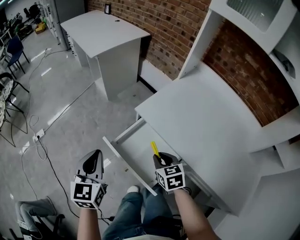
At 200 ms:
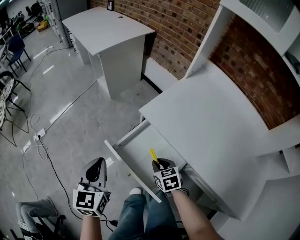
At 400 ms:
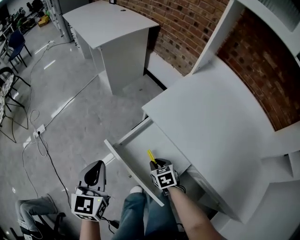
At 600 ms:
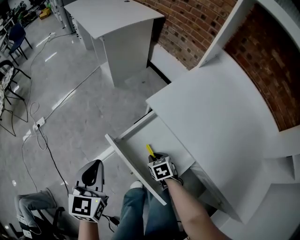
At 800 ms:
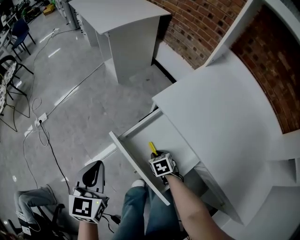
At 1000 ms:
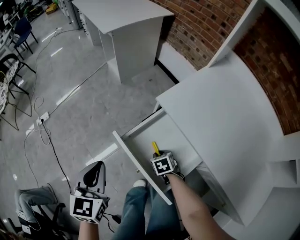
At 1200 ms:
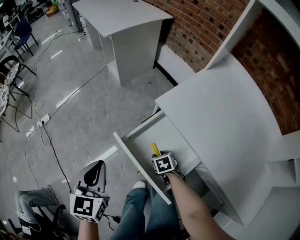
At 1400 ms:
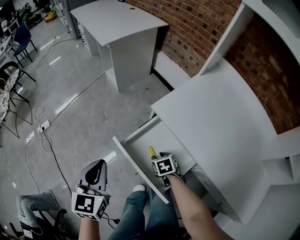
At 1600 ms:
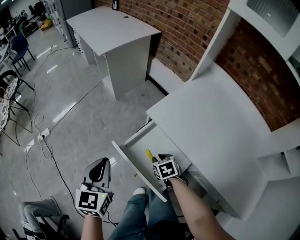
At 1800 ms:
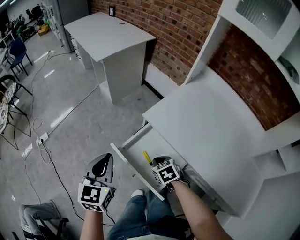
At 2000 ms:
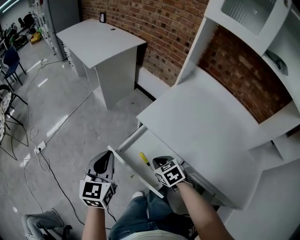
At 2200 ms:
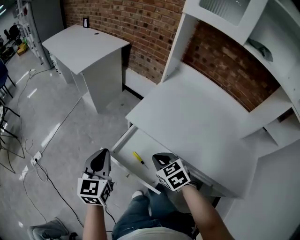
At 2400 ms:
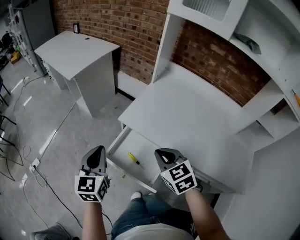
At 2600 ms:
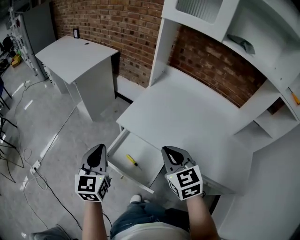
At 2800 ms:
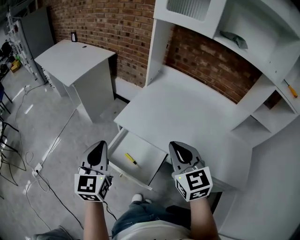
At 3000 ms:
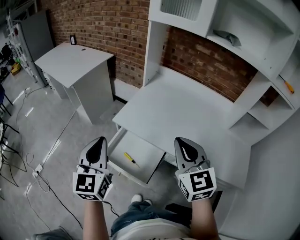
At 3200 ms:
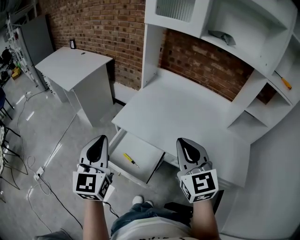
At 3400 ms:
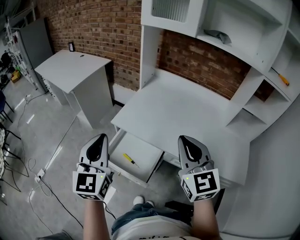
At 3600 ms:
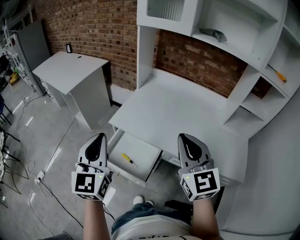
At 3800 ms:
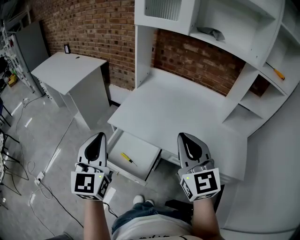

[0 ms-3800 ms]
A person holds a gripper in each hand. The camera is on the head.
0 ms to 1200 ms: The left gripper is displaced downward by some 10 cm. Meanwhile the right gripper goes about 25 cm downward, and swivels about 30 degrees.
1200 ms to 2600 ms: The left gripper travels upward and to the right by approximately 20 cm, and changes its angle by about 20 degrees; the right gripper travels upward by some 40 cm, tips its fingers upward by roughly 40 degrees, and closes its fingers.
2600 ms to 3800 ms: The grippers both shift upward, to the right and backward by about 15 cm. The right gripper turns by approximately 30 degrees.

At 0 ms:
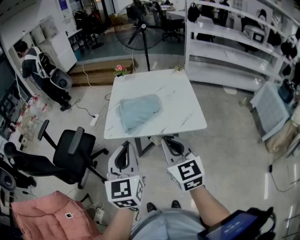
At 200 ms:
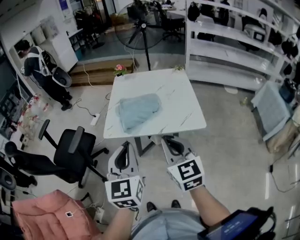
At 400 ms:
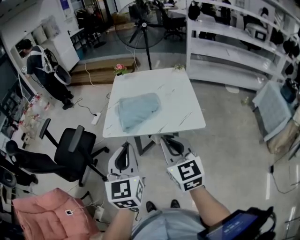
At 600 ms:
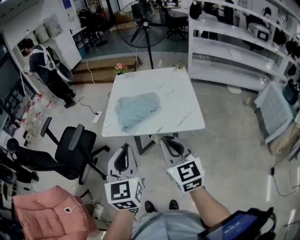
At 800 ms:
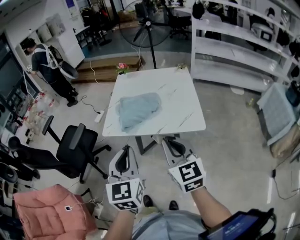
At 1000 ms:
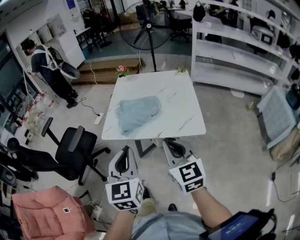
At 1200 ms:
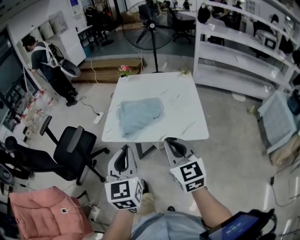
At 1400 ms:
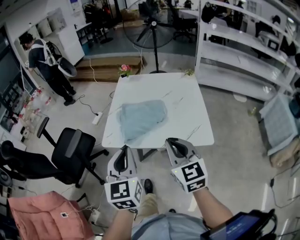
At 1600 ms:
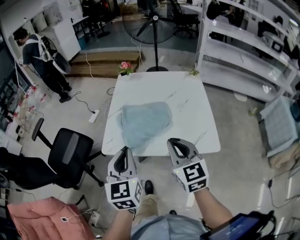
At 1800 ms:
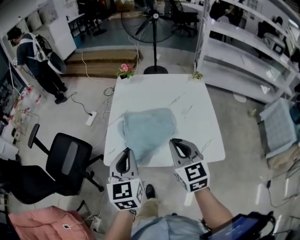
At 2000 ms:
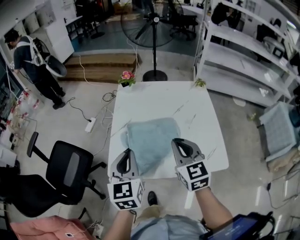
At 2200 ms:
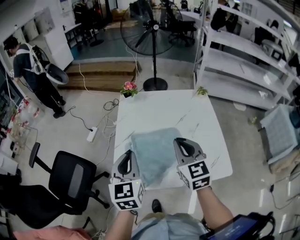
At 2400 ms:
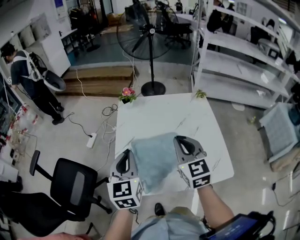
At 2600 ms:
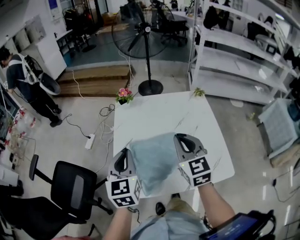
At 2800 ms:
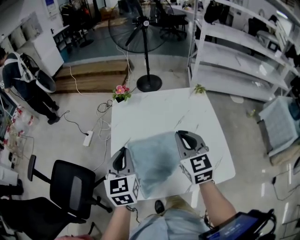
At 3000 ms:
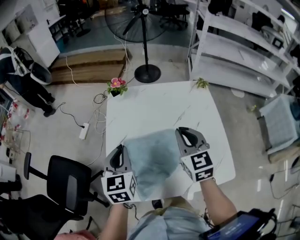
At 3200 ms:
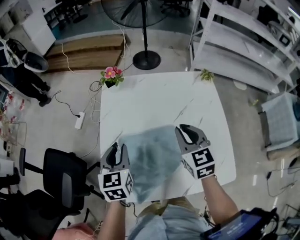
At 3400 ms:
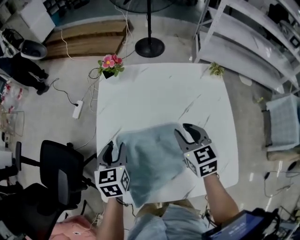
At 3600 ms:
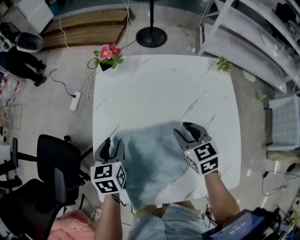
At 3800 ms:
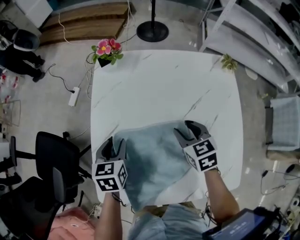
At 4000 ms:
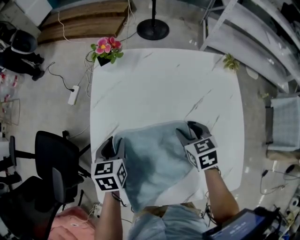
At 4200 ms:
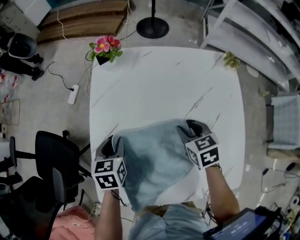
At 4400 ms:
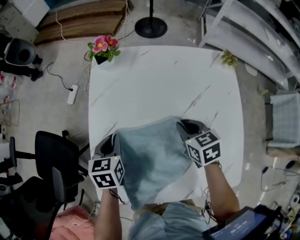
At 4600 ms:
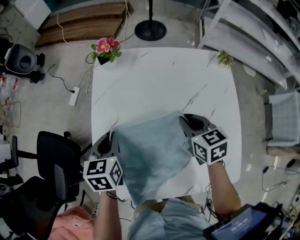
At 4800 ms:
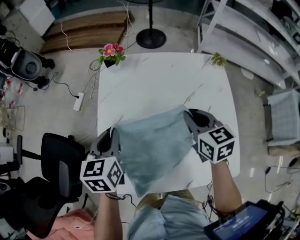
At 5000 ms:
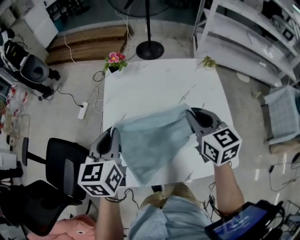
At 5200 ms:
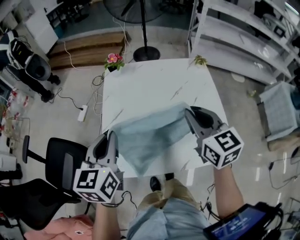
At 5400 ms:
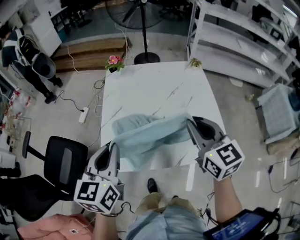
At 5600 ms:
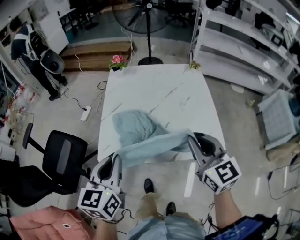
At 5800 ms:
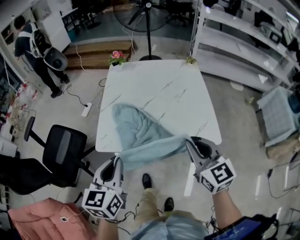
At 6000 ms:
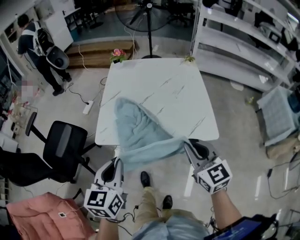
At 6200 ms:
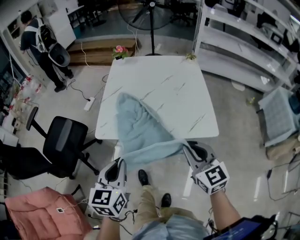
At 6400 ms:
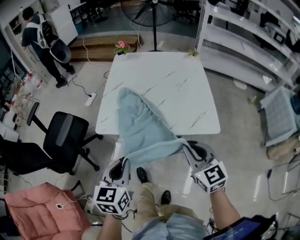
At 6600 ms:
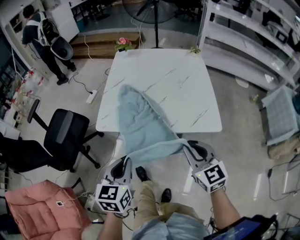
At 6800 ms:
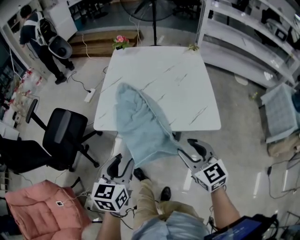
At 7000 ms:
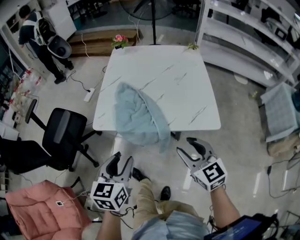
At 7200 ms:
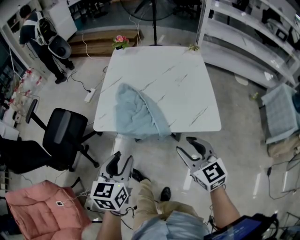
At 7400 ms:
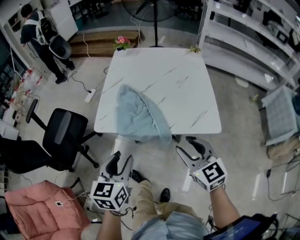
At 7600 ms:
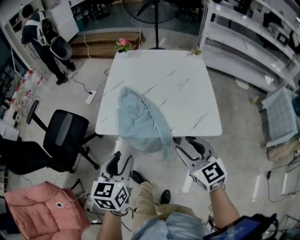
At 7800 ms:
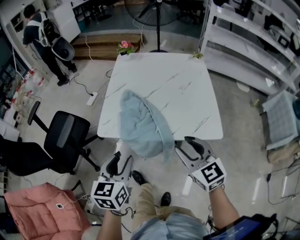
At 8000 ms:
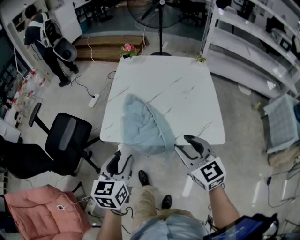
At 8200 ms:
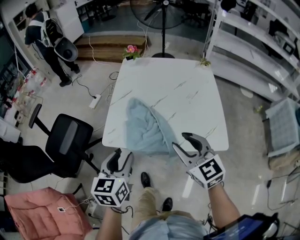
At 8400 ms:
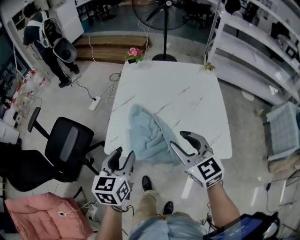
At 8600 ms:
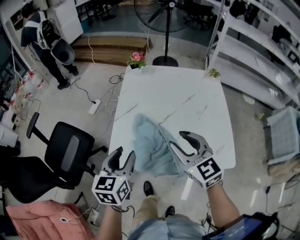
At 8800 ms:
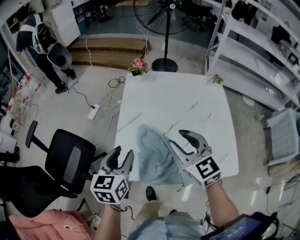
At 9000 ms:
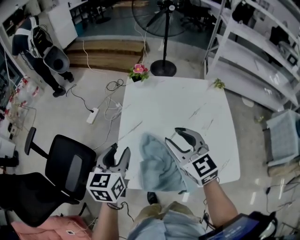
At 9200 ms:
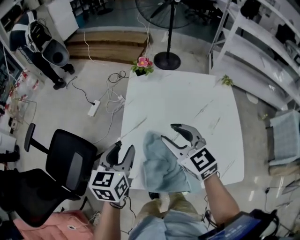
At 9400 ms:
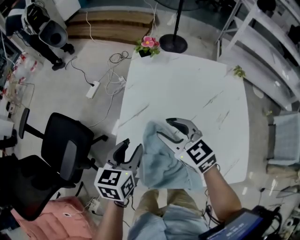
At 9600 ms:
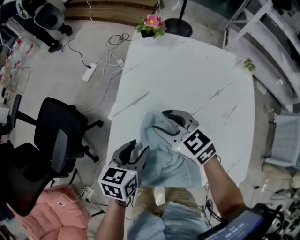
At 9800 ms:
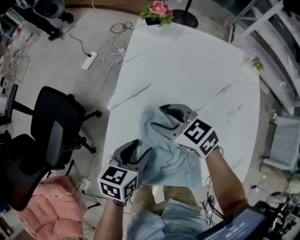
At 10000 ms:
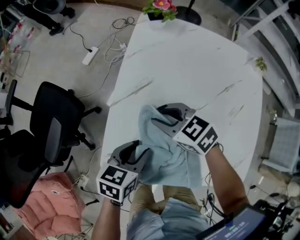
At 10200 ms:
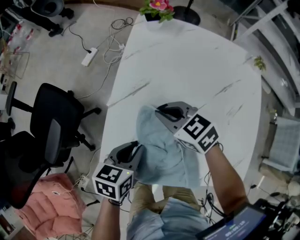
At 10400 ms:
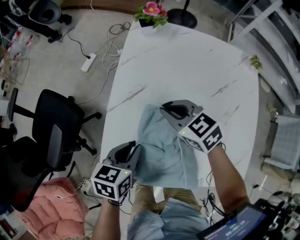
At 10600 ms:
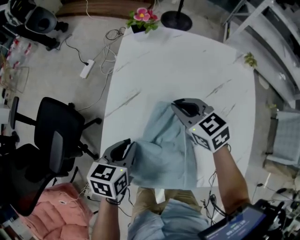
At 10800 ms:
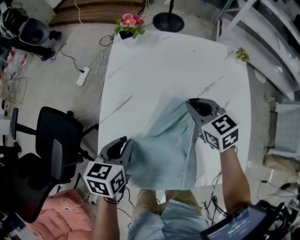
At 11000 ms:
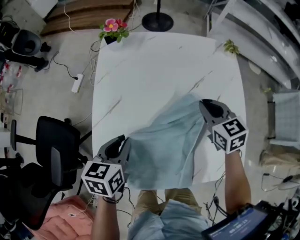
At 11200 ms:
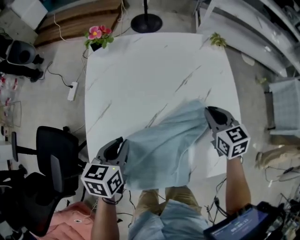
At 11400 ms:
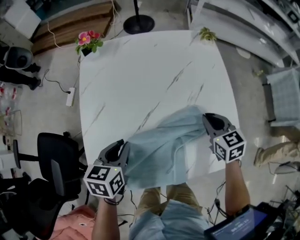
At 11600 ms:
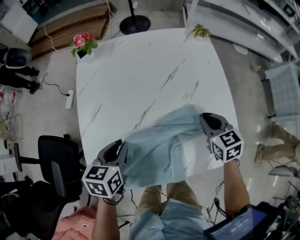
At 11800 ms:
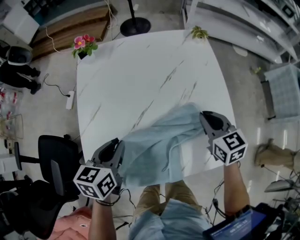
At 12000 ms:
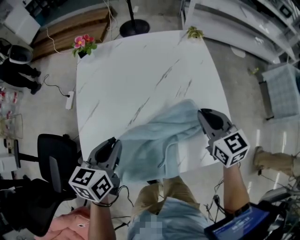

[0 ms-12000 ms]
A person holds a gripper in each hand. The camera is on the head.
0 ms to 1600 ms: The right gripper travels forward by roughly 15 cm. The left gripper moves forward and downward, approximately 15 cm.
1600 ms to 3000 ms: The grippers both shift forward by roughly 30 cm.
3000 ms to 4400 ms: Both grippers travel together downward, roughly 20 cm. The right gripper turns by some 40 degrees, and opens, then closes once more. Meanwhile the left gripper swivels some 30 degrees, and opens and closes again.
4400 ms to 6000 ms: The pair of grippers is taken backward, about 40 cm. The two grippers go roughly 20 cm upward. The right gripper angles its fingers upward, by about 30 degrees, while the left gripper swivels roughly 30 degrees.
6000 ms to 7600 ms: The left gripper opens up. Meanwhile the right gripper opens up.
7600 ms to 9000 ms: Both grippers travel together forward, some 30 cm.
9000 ms to 10400 ms: The right gripper goes about 20 cm downward and forward, turns by roughly 30 degrees, and closes up. The left gripper travels downward by some 15 cm, turns by roughly 30 degrees, and closes its fingers.
10400 ms to 12000 ms: The right gripper shifts by roughly 35 cm, and turns by about 40 degrees. The left gripper moves approximately 15 cm.

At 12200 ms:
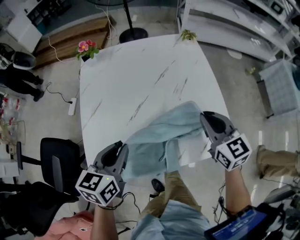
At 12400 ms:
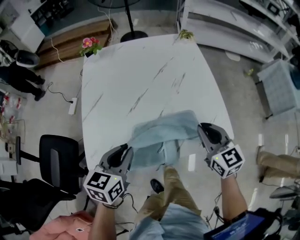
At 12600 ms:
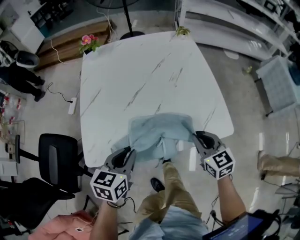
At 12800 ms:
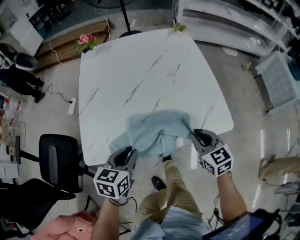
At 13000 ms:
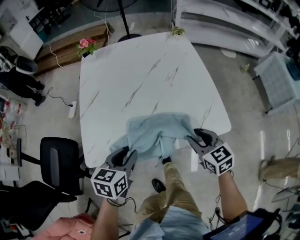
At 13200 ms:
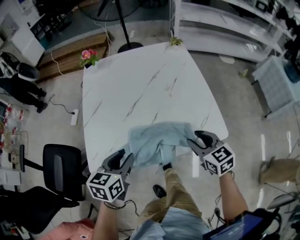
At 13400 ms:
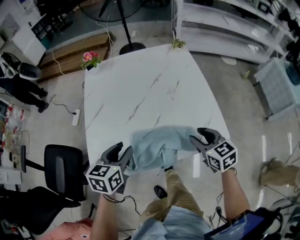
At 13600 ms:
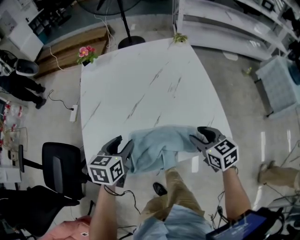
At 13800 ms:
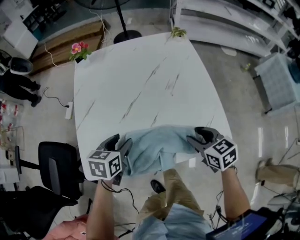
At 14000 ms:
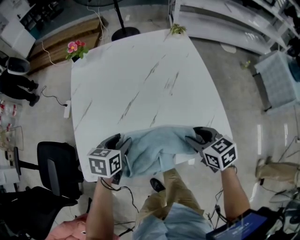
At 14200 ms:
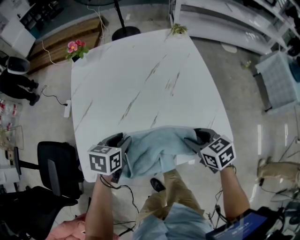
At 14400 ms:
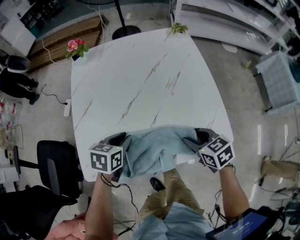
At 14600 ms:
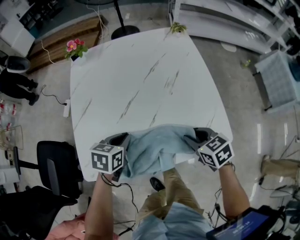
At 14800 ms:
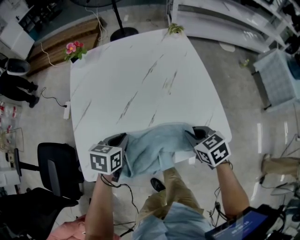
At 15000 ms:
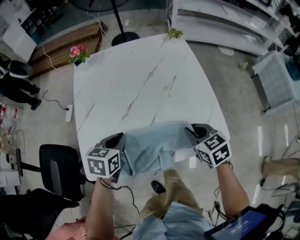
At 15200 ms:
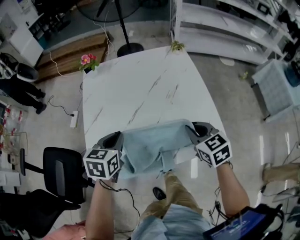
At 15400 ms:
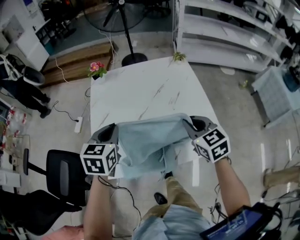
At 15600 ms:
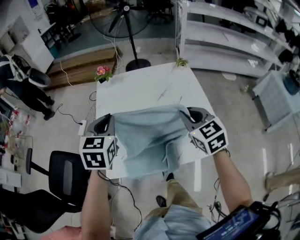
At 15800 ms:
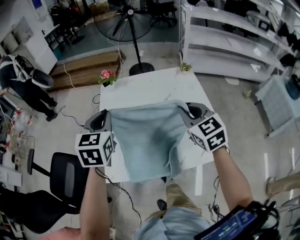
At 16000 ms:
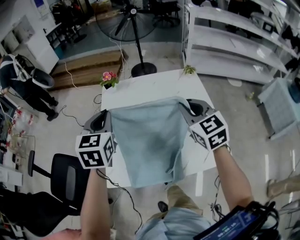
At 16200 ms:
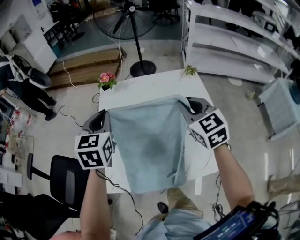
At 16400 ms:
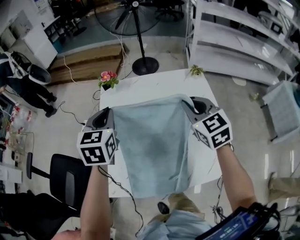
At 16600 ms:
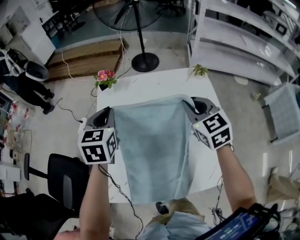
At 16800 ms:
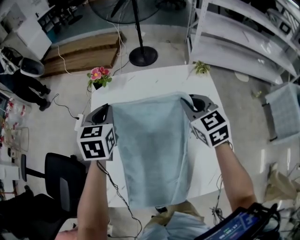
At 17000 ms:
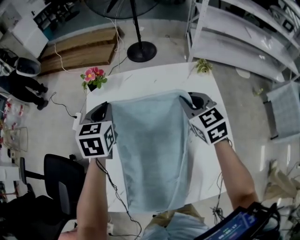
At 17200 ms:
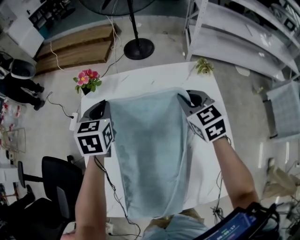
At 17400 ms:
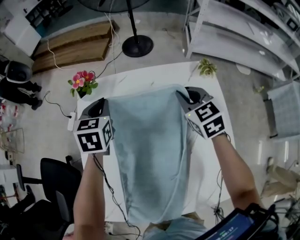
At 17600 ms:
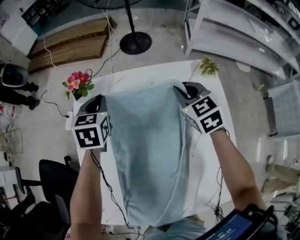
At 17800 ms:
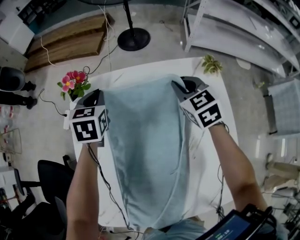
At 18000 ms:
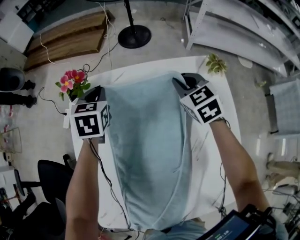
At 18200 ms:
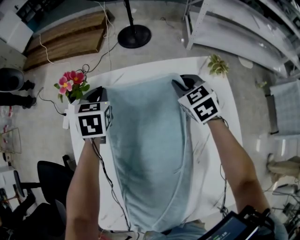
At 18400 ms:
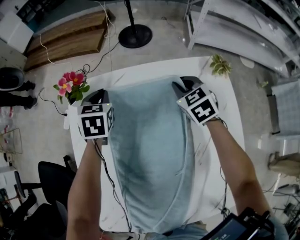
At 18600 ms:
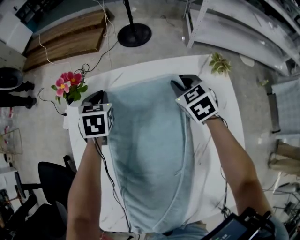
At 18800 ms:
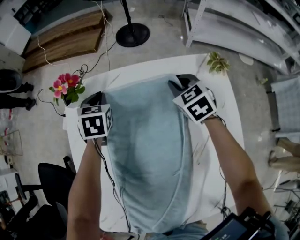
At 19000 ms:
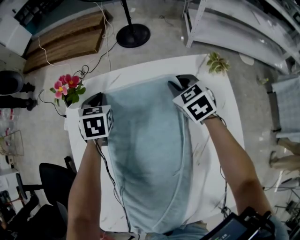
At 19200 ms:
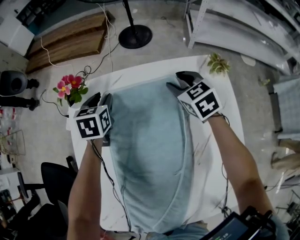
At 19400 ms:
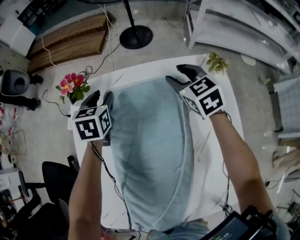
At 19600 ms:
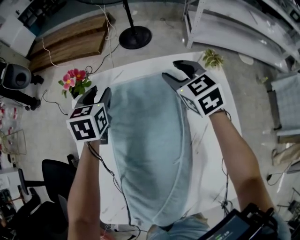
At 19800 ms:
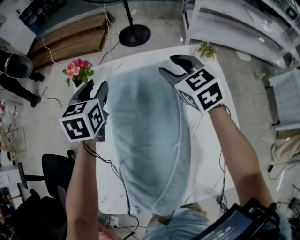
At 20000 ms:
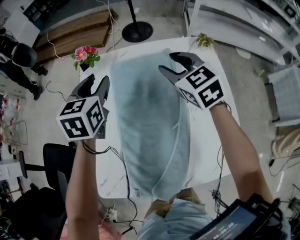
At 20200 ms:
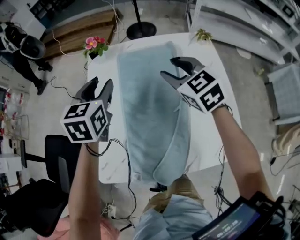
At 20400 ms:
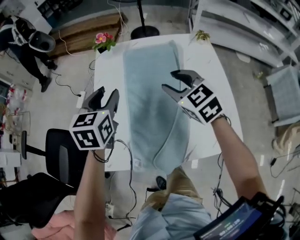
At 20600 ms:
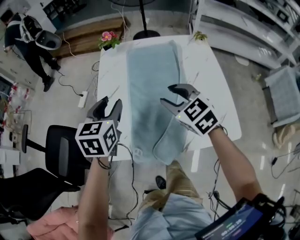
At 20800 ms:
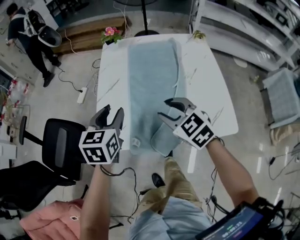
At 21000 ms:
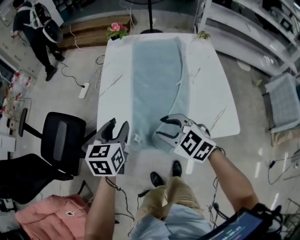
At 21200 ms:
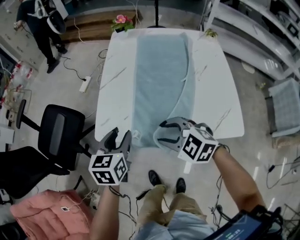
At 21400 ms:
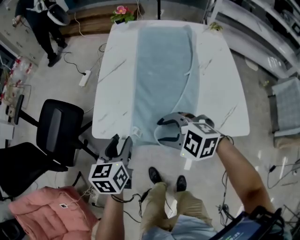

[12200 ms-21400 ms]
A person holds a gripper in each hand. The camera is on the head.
12200 ms to 13800 ms: The right gripper is displaced downward and backward by about 15 cm, changes its angle by about 20 degrees, and opens; the left gripper shifts some 10 cm downward, reaches roughly 10 cm backward, then returns, and opens.
13800 ms to 15200 ms: Both grippers move upward, approximately 10 cm. The right gripper closes up. Meanwhile the left gripper closes up.
15200 ms to 16800 ms: The grippers both shift forward by about 25 cm. The left gripper rotates roughly 20 degrees.
16800 ms to 18400 ms: The two grippers go roughly 25 cm forward and downward.
18400 ms to 19800 ms: The two grippers go some 15 cm upward and backward. The right gripper opens its fingers; the left gripper opens its fingers.
19800 ms to 21400 ms: Both grippers are carried some 50 cm. The right gripper rotates some 60 degrees, while the left gripper rotates approximately 20 degrees.
